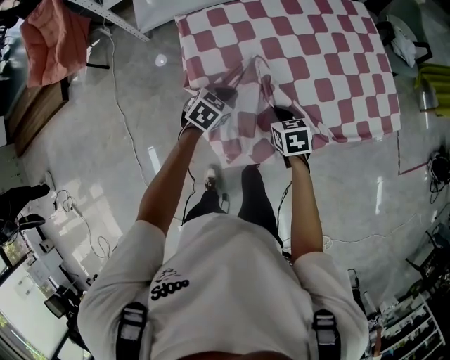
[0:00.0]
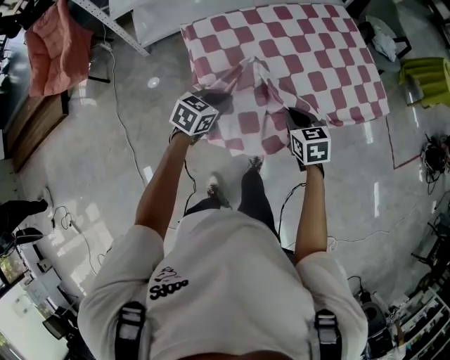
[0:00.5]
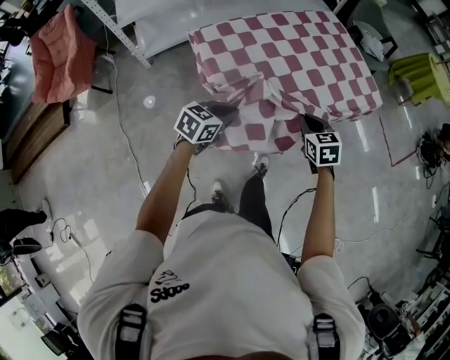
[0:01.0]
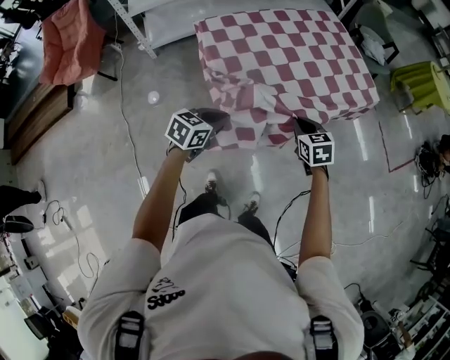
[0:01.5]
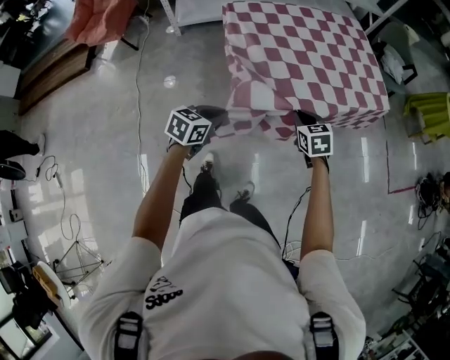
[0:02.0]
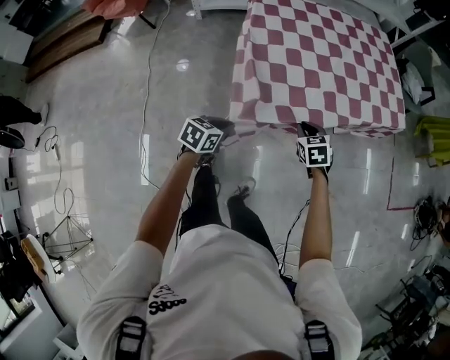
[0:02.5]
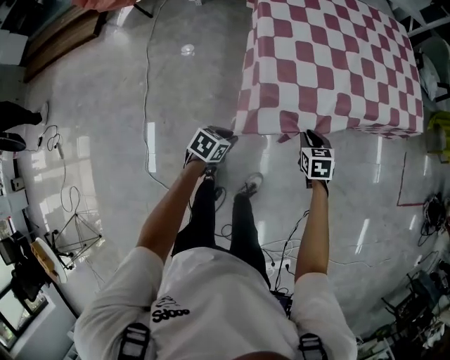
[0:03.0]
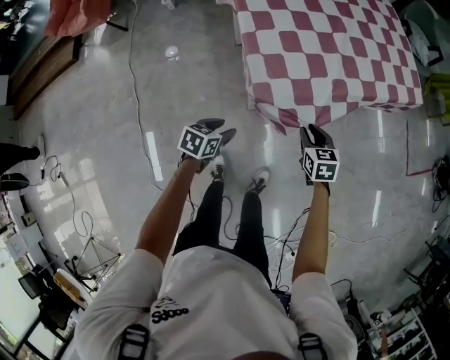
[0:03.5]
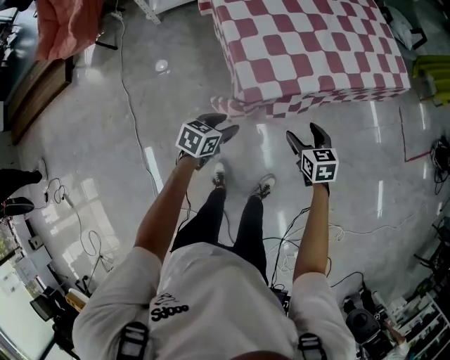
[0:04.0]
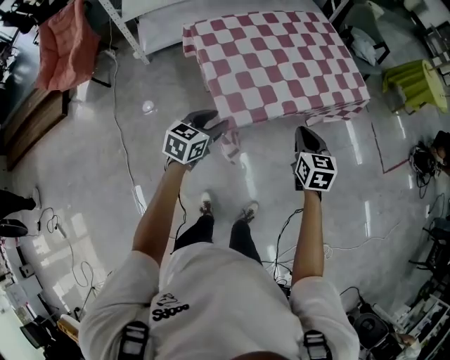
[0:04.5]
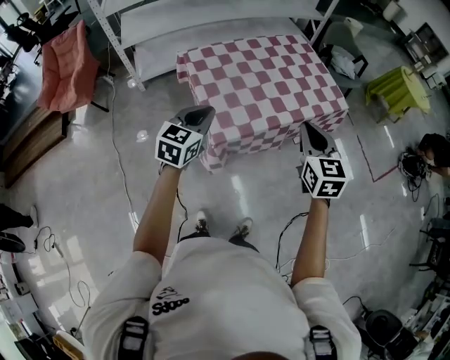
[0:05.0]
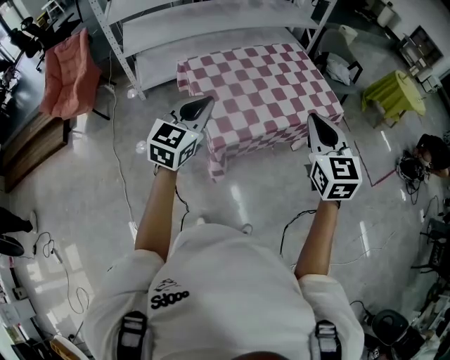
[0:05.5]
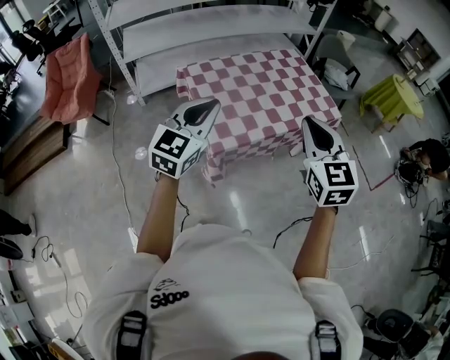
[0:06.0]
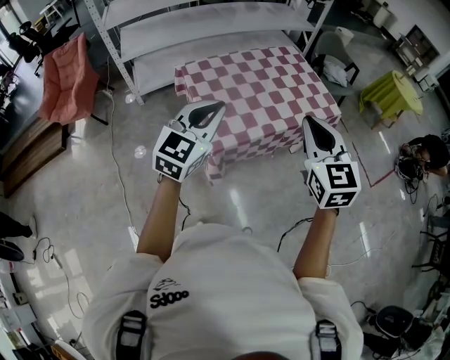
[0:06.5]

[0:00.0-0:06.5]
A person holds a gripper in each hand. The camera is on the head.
0:00.0 to 0:02.0: The left gripper shifts approximately 35 cm backward, and swivels approximately 20 degrees. The right gripper shifts some 25 cm backward and to the right.
0:02.0 to 0:04.5: The right gripper travels downward and back again, approximately 15 cm each way, changes its angle by approximately 30 degrees, and opens, then closes again; the left gripper moves forward, some 10 cm, travels downward and back again, approximately 20 cm each way, and opens.
0:04.5 to 0:06.5: Both grippers travel together upward, roughly 30 cm. The right gripper changes its angle by roughly 30 degrees, while the left gripper turns by roughly 40 degrees, and closes its fingers.

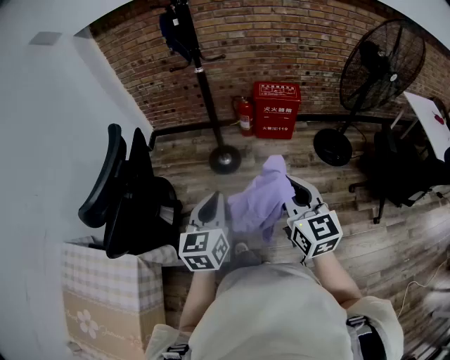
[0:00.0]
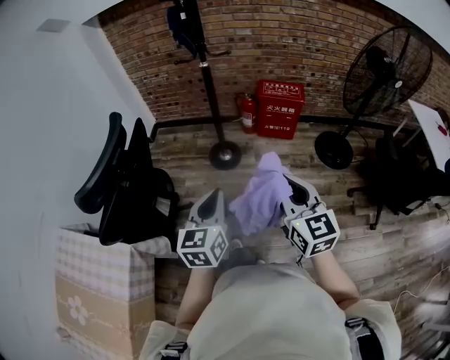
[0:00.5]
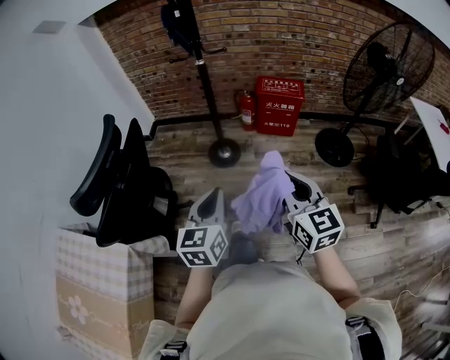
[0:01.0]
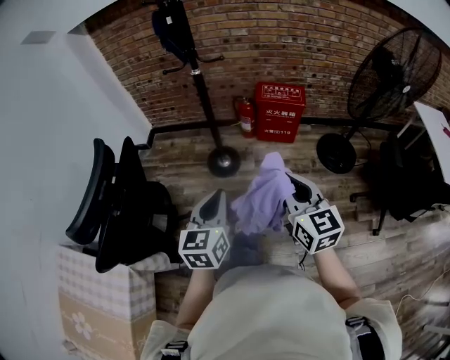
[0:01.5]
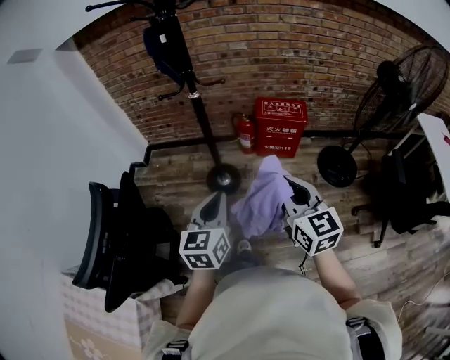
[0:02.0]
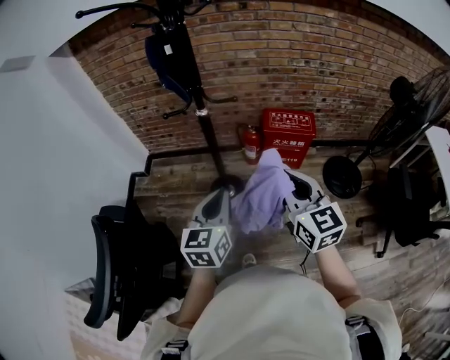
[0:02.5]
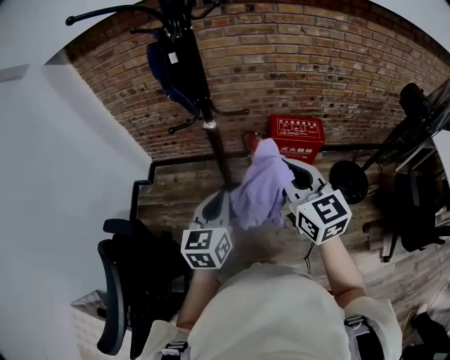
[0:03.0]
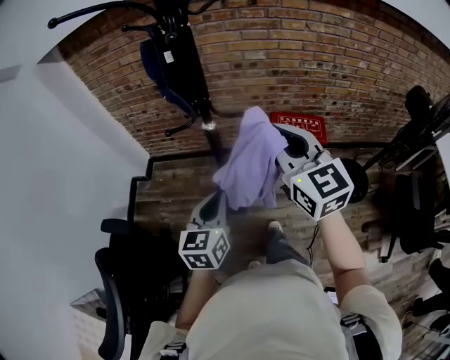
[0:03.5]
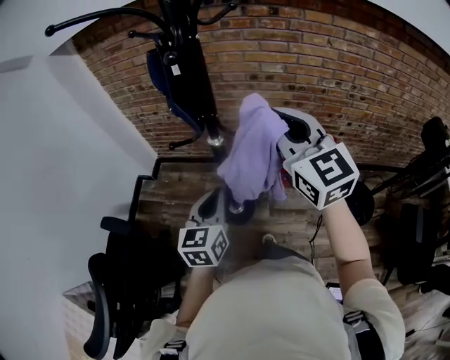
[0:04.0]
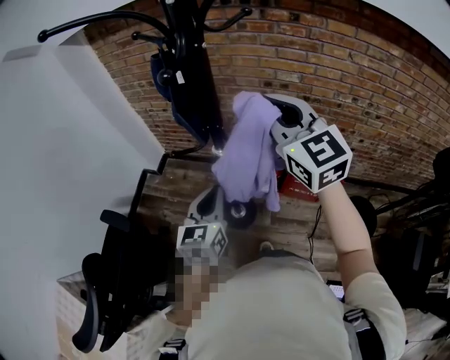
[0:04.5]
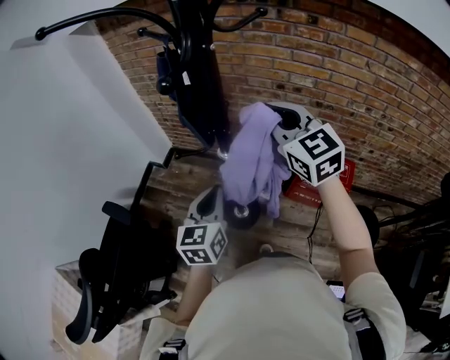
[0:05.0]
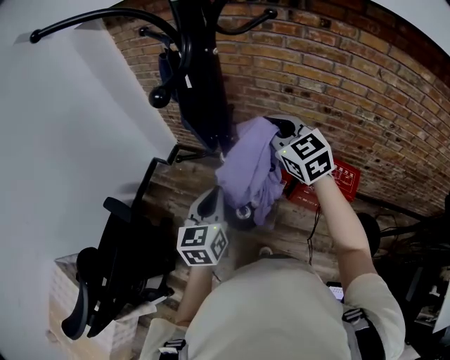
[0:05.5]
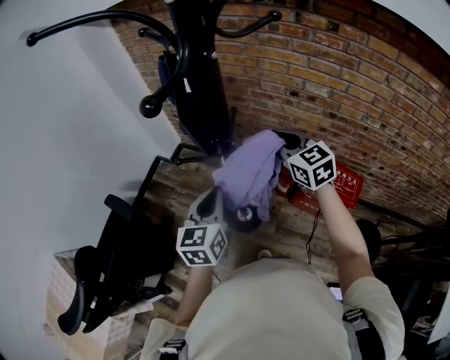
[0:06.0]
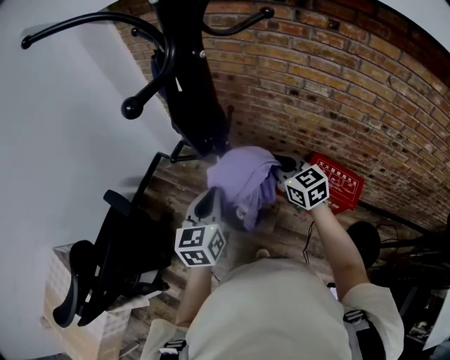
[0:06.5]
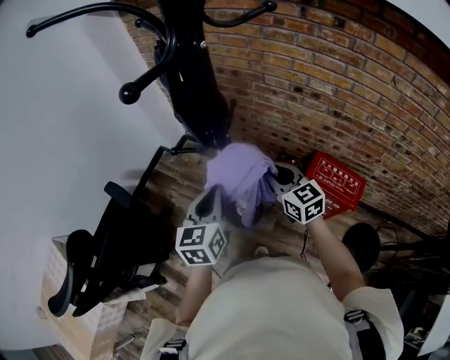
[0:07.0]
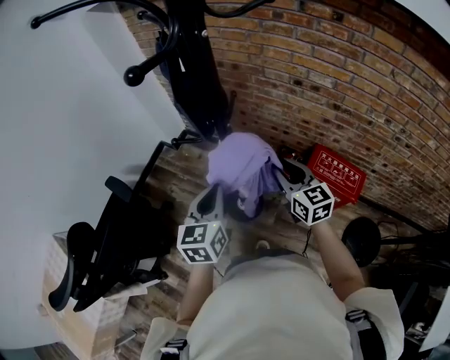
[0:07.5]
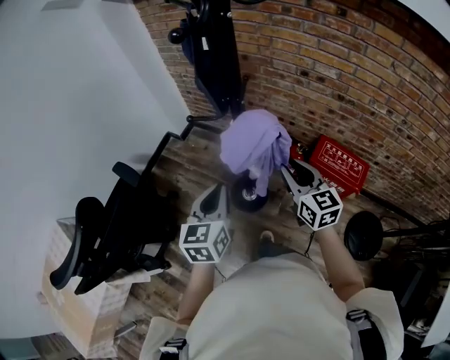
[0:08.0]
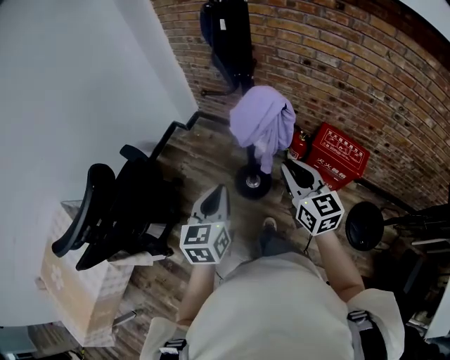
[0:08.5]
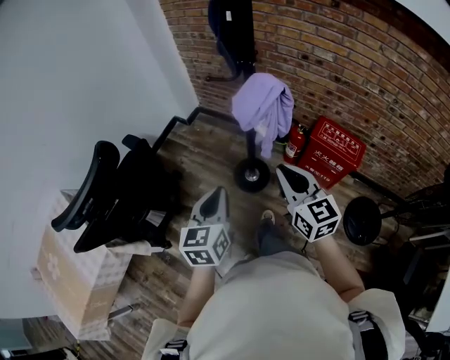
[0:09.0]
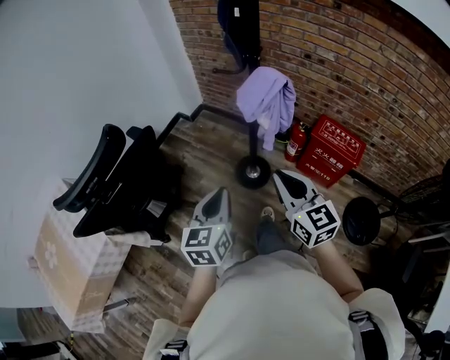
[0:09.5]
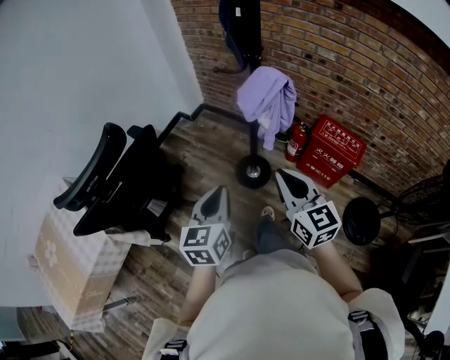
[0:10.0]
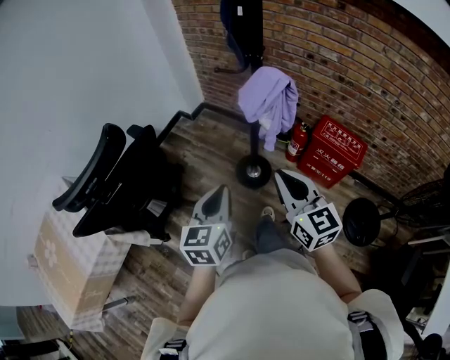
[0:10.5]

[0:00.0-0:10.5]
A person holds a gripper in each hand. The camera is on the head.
0:00.0 to 0:02.0: The grippers both shift forward by some 20 cm.
0:02.0 to 0:04.0: The right gripper shifts some 40 cm forward and upward, and changes its angle by about 20 degrees. Meanwhile the left gripper heads forward, covering some 25 cm.
0:04.0 to 0:06.5: The left gripper shifts roughly 10 cm forward, and swivels approximately 20 degrees; the right gripper shifts approximately 30 cm downward and forward, and changes its angle by some 30 degrees.
0:06.5 to 0:08.5: The right gripper is displaced backward by about 25 cm; the left gripper is displaced backward and to the left by roughly 20 cm.
0:08.5 to 0:10.5: The left gripper heads backward, covering roughly 10 cm. Meanwhile the right gripper is displaced backward and to the left by roughly 15 cm.

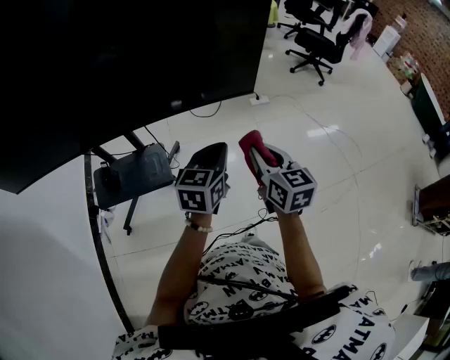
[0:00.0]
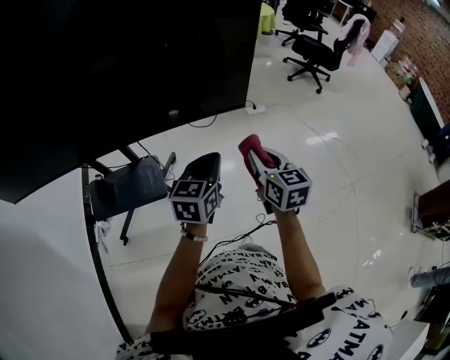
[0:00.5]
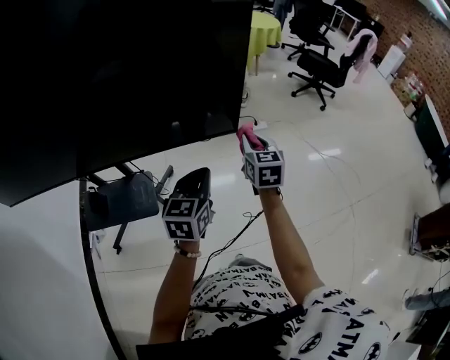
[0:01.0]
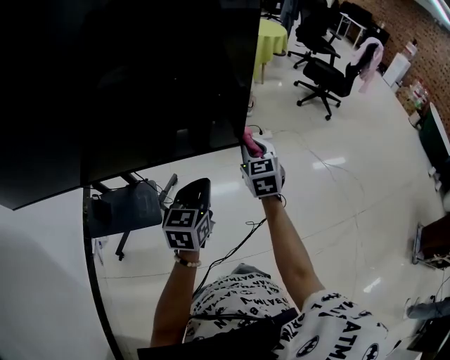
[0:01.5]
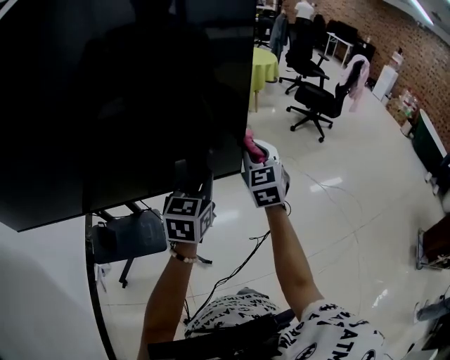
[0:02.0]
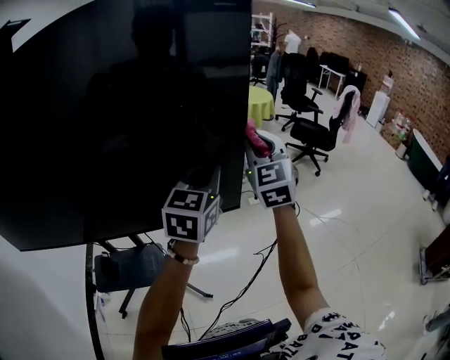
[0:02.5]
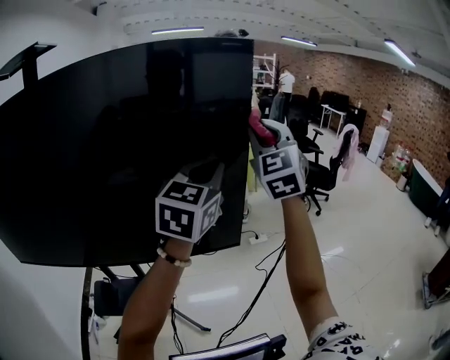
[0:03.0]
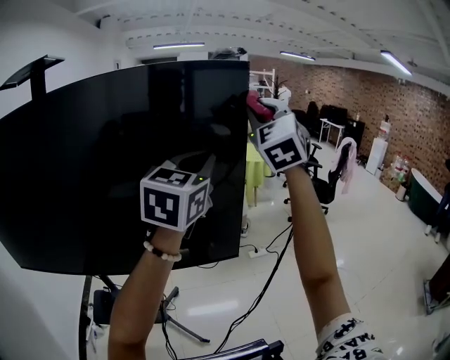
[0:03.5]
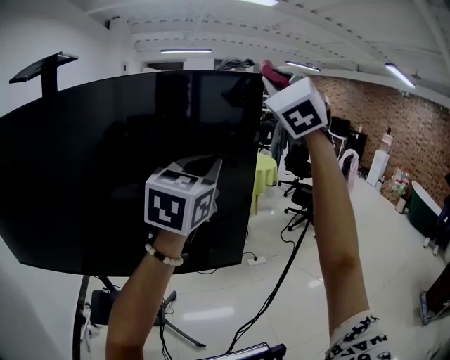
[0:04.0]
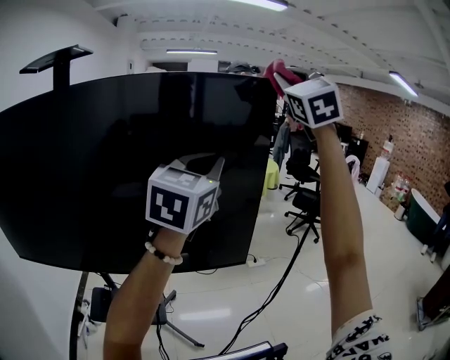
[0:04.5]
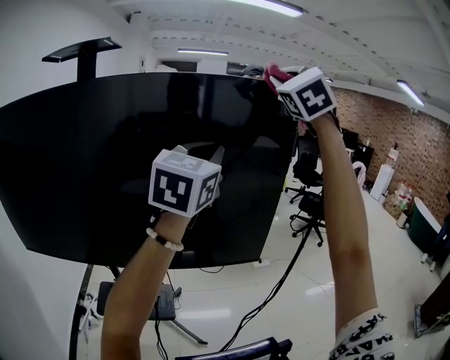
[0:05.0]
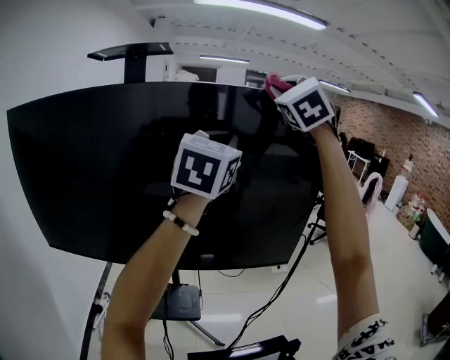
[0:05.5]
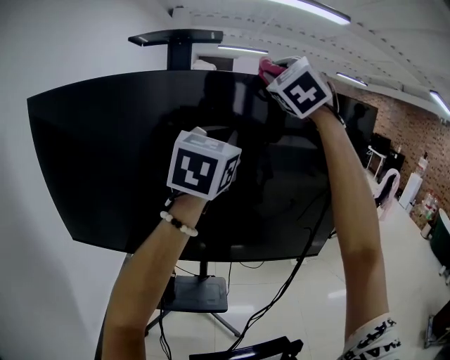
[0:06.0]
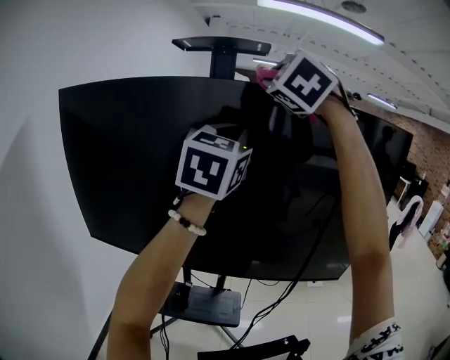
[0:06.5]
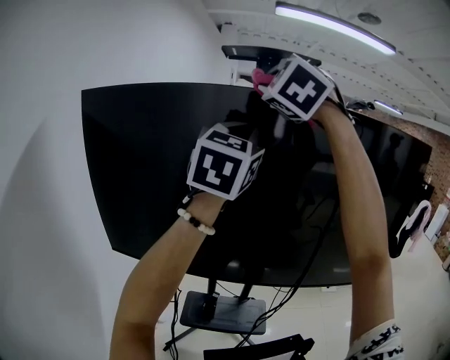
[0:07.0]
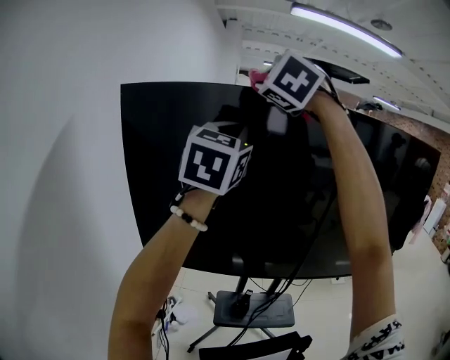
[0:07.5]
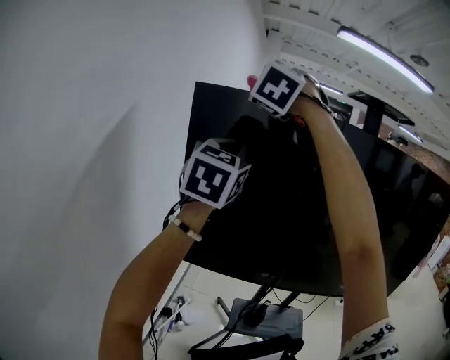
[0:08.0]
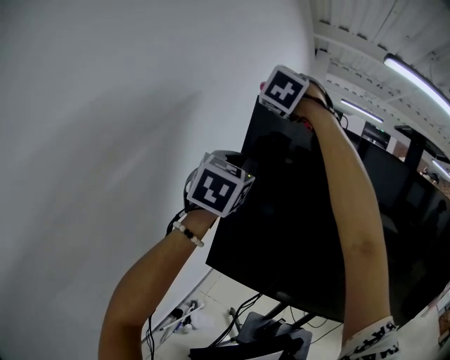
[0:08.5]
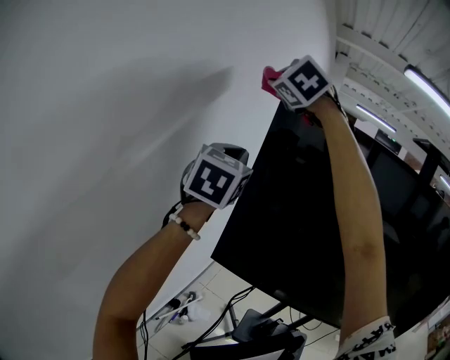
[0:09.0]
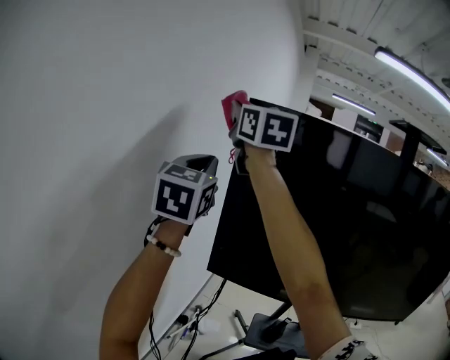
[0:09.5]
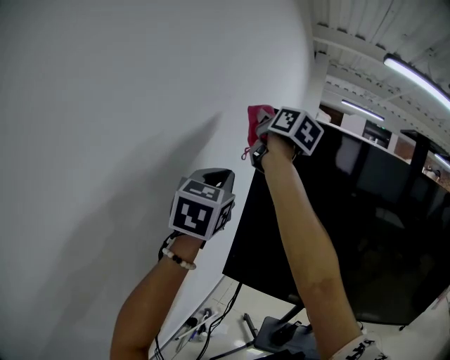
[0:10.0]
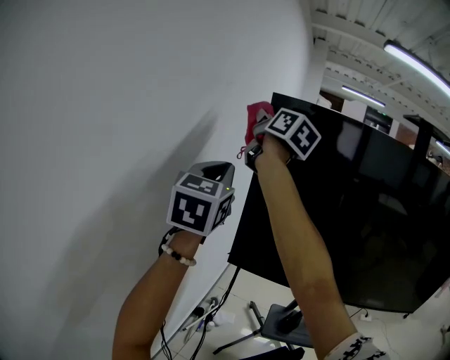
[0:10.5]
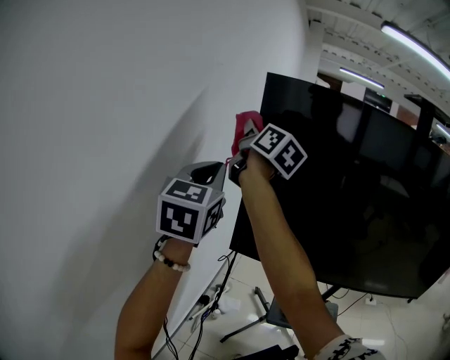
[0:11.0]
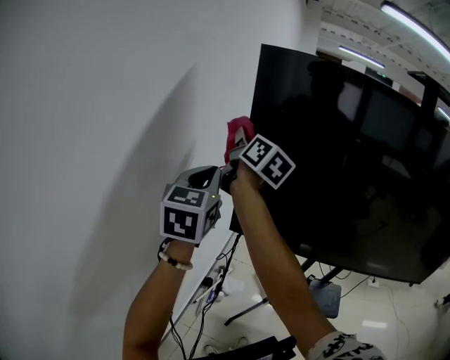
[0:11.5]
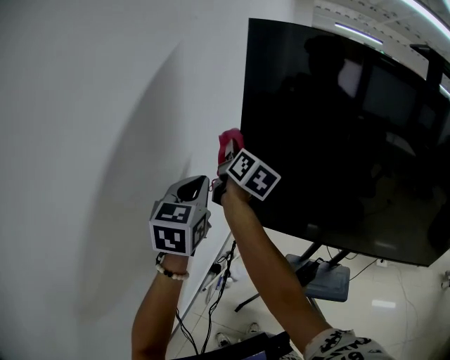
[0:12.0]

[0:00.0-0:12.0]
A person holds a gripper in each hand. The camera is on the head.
0:00.0 to 0:02.0: The right gripper travels forward and upward by roughly 25 cm, and swivels approximately 30 degrees; the left gripper moves forward and upward, some 15 cm.
0:02.0 to 0:04.0: The right gripper is displaced upward by about 50 cm, and turns by approximately 50 degrees. Meanwhile the left gripper goes some 35 cm upward, and changes its angle by approximately 20 degrees.
0:04.0 to 0:06.0: Both grippers travel together to the left, about 35 cm.
0:06.0 to 0:08.0: Both grippers are carried to the left, approximately 60 cm. The right gripper swivels about 20 degrees.
0:08.0 to 0:10.0: Both grippers travel together to the left, roughly 20 cm. The right gripper rolls clockwise, seen from behind, by about 100 degrees.
0:10.0 to 0:12.0: The left gripper goes approximately 20 cm downward; the right gripper moves downward, roughly 35 cm.
